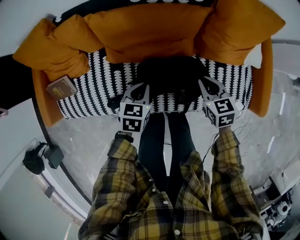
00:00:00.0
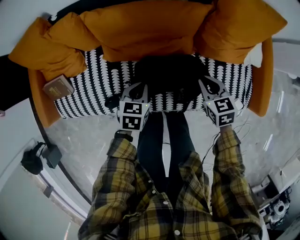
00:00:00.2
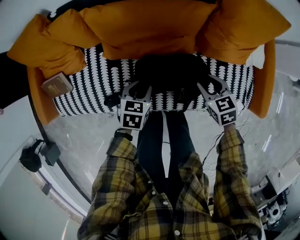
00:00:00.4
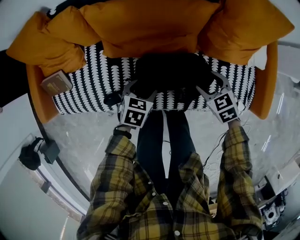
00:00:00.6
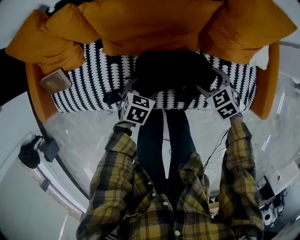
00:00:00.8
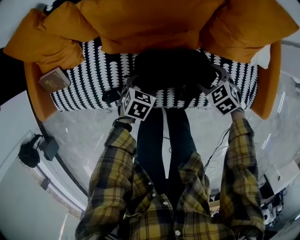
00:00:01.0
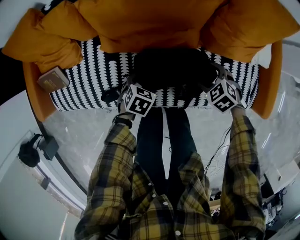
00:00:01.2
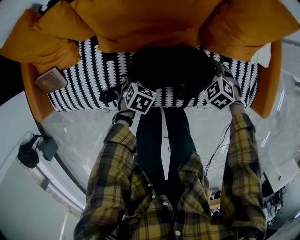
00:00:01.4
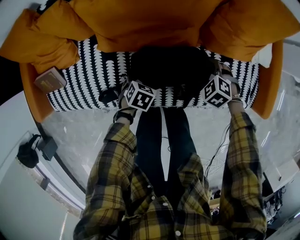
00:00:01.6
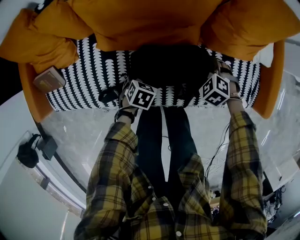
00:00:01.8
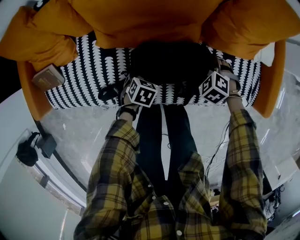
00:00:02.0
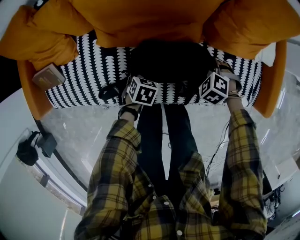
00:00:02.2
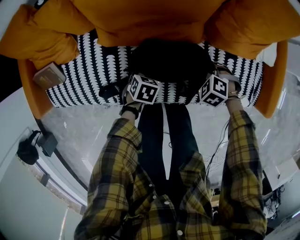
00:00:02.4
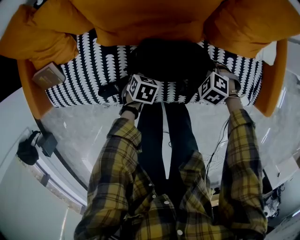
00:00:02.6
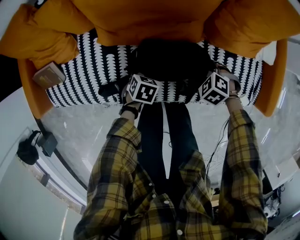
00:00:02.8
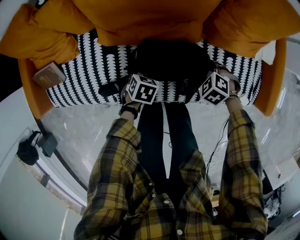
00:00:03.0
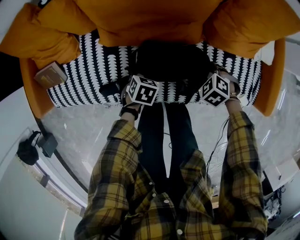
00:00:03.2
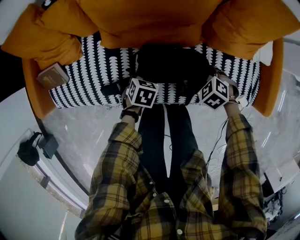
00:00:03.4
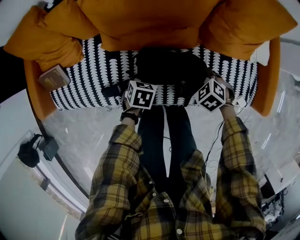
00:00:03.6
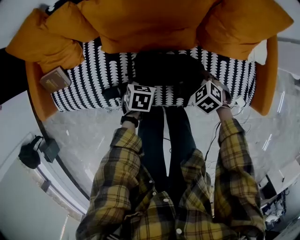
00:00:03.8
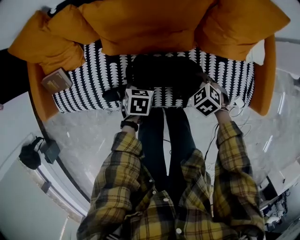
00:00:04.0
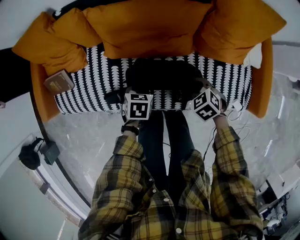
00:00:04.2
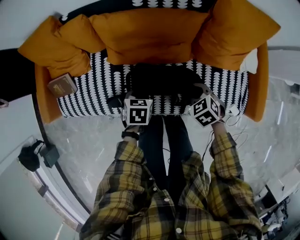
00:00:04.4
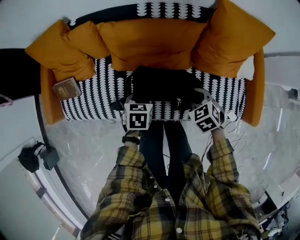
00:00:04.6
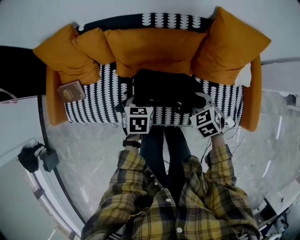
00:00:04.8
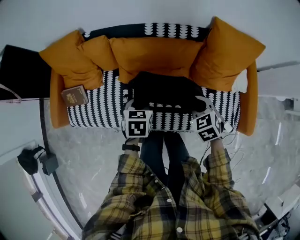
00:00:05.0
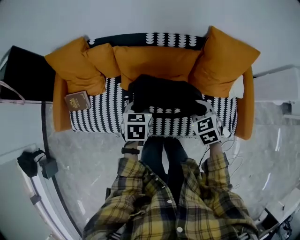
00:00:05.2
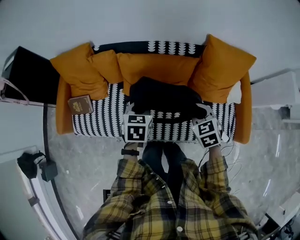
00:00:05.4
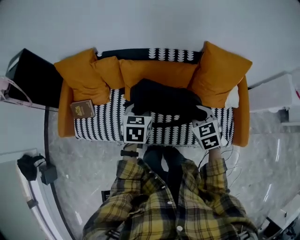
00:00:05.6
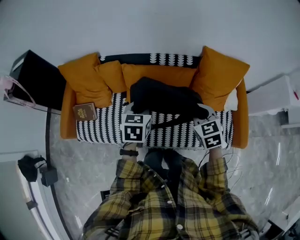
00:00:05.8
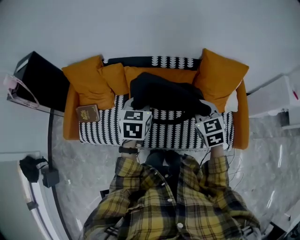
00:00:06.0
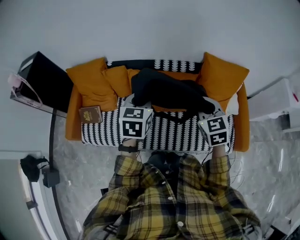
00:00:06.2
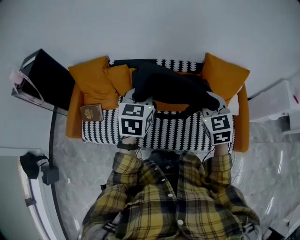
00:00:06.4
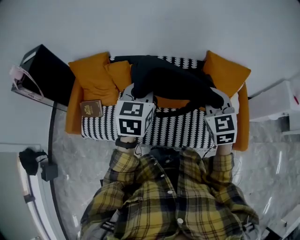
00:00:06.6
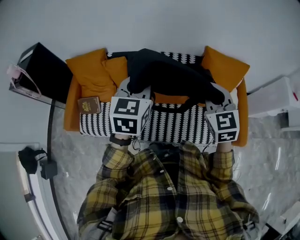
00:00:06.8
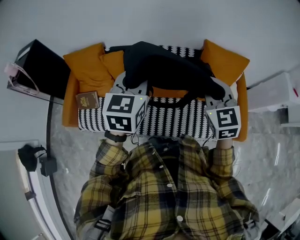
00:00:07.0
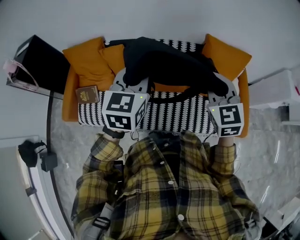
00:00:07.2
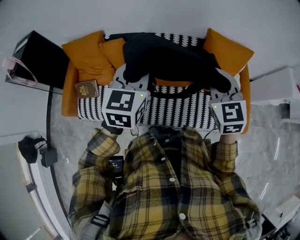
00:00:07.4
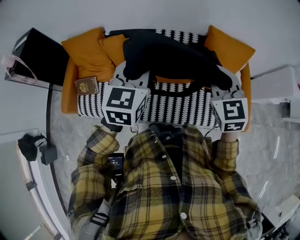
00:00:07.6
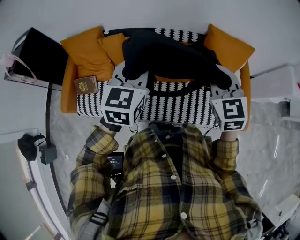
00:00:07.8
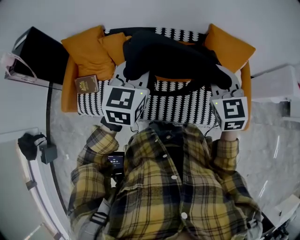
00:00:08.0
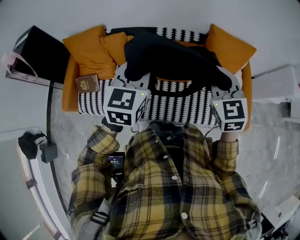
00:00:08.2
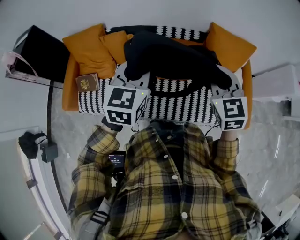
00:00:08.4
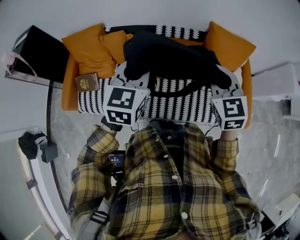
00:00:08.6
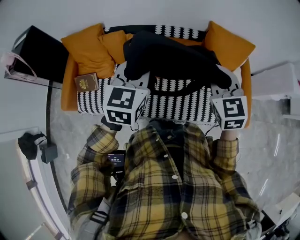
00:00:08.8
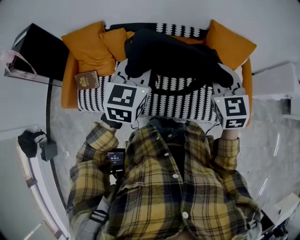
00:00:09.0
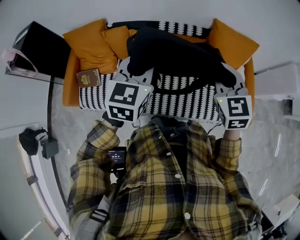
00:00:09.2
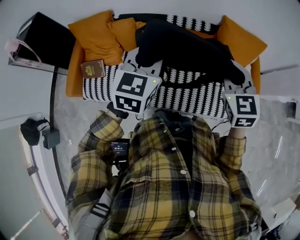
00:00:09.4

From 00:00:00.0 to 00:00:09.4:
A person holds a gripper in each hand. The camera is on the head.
From 00:00:00.0 to 00:00:01.6: Both grippers travel together downward, approximately 15 cm. The left gripper rotates approximately 20 degrees, and opens. Meanwhile the right gripper twists about 40 degrees counterclockwise, seen from behind, and opens its fingers.
From 00:00:01.6 to 00:00:03.2: The right gripper closes up. Meanwhile the left gripper closes its fingers.
From 00:00:03.2 to 00:00:04.8: Both grippers move upward, some 20 cm. The left gripper turns by some 20 degrees. Meanwhile the right gripper turns by about 30 degrees.
From 00:00:04.8 to 00:00:06.2: The grippers both shift upward by approximately 30 cm. The left gripper swivels approximately 30 degrees. Meanwhile the right gripper changes its angle by some 30 degrees.
From 00:00:06.2 to 00:00:07.8: Both grippers move upward, approximately 5 cm.
From 00:00:07.8 to 00:00:09.4: The grippers stay close to where they were, moving slightly.

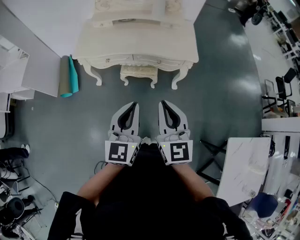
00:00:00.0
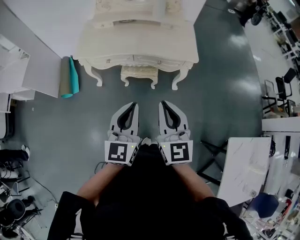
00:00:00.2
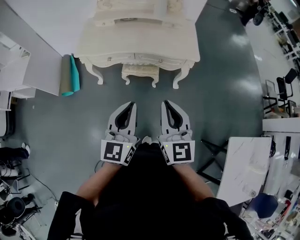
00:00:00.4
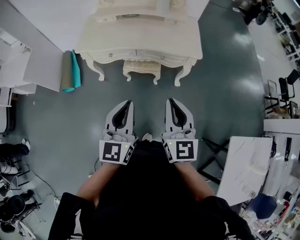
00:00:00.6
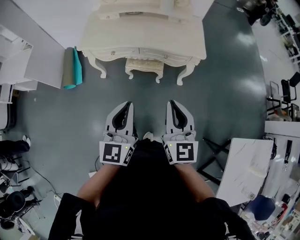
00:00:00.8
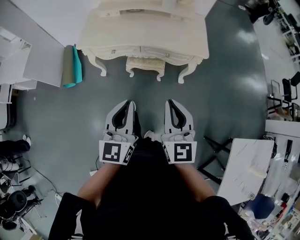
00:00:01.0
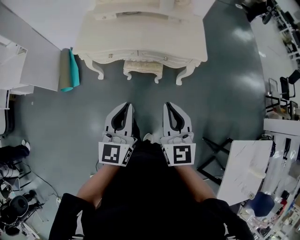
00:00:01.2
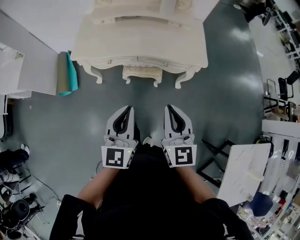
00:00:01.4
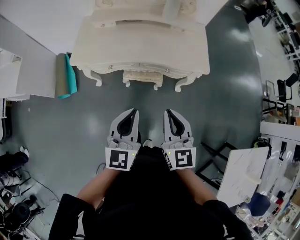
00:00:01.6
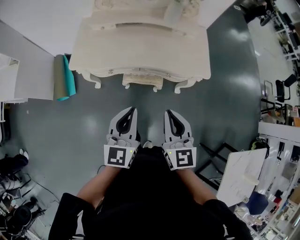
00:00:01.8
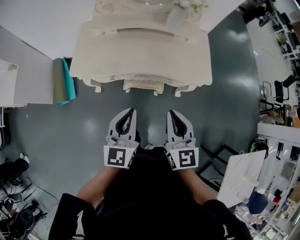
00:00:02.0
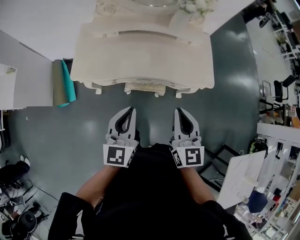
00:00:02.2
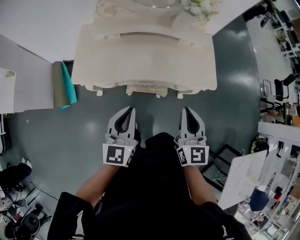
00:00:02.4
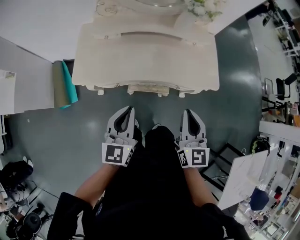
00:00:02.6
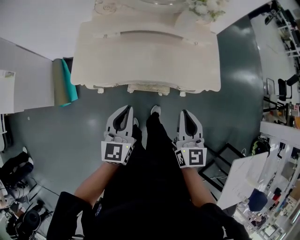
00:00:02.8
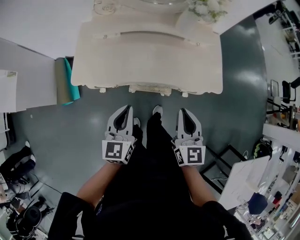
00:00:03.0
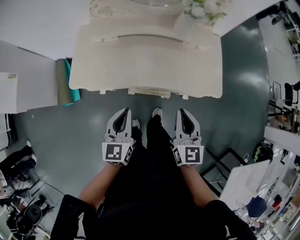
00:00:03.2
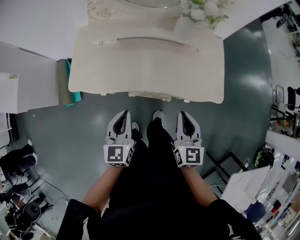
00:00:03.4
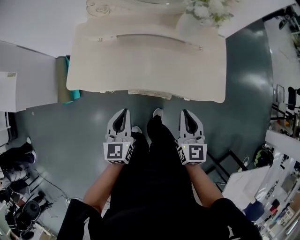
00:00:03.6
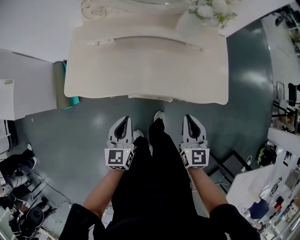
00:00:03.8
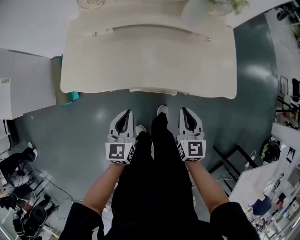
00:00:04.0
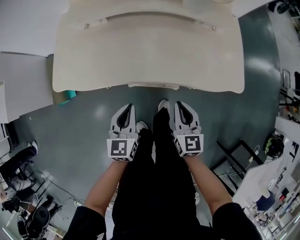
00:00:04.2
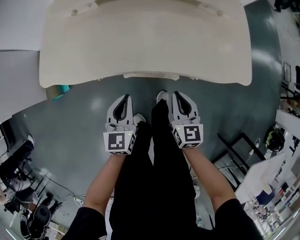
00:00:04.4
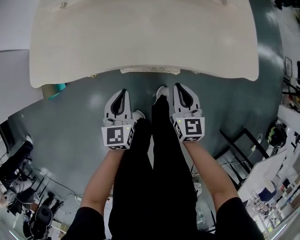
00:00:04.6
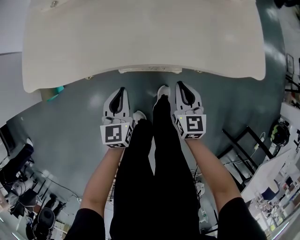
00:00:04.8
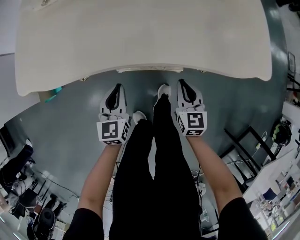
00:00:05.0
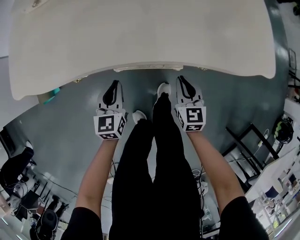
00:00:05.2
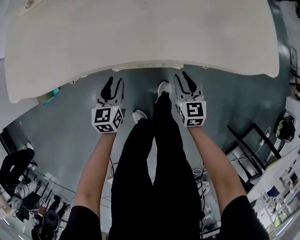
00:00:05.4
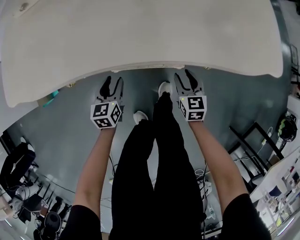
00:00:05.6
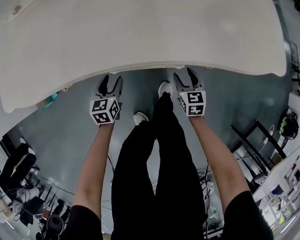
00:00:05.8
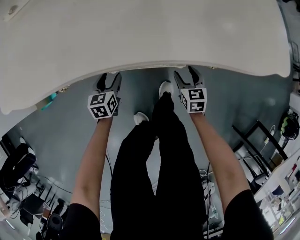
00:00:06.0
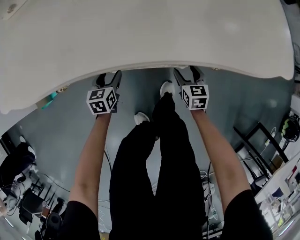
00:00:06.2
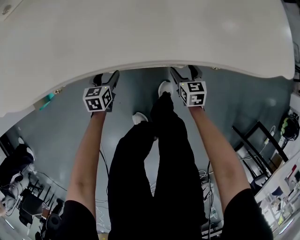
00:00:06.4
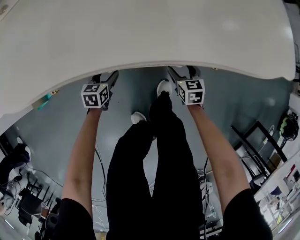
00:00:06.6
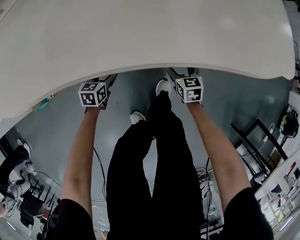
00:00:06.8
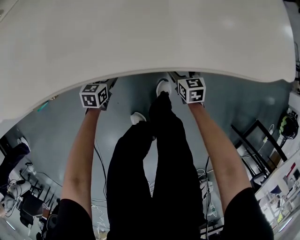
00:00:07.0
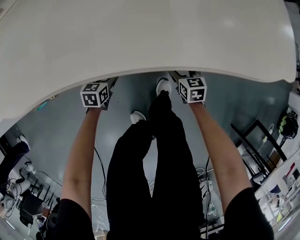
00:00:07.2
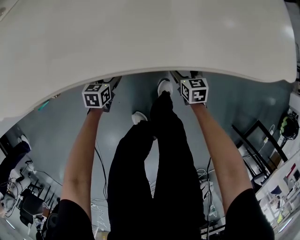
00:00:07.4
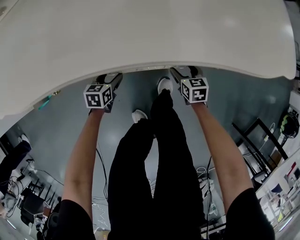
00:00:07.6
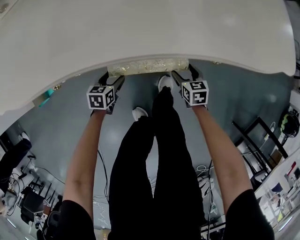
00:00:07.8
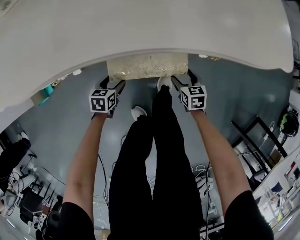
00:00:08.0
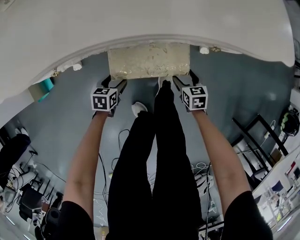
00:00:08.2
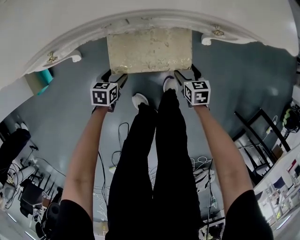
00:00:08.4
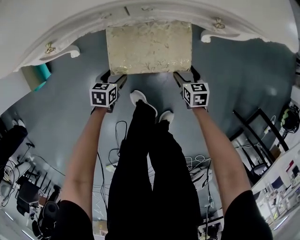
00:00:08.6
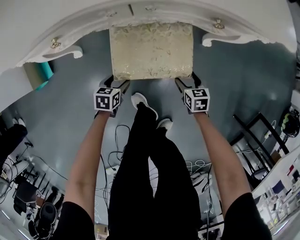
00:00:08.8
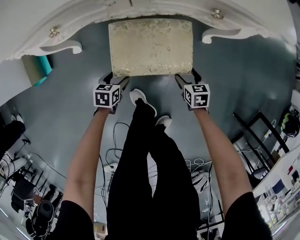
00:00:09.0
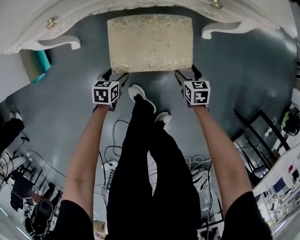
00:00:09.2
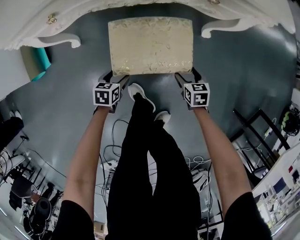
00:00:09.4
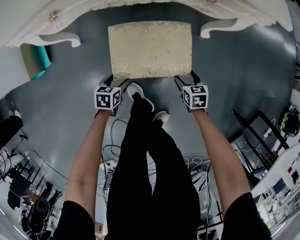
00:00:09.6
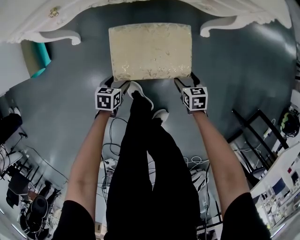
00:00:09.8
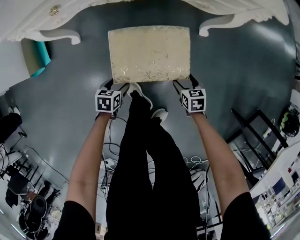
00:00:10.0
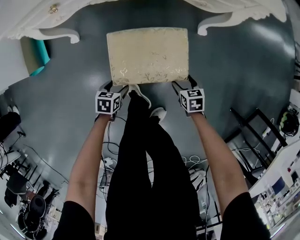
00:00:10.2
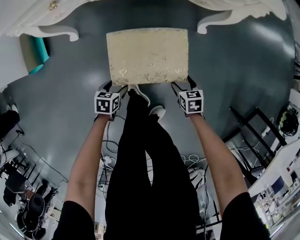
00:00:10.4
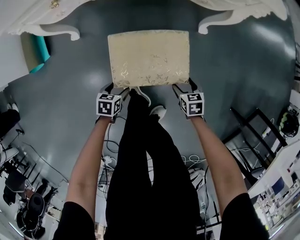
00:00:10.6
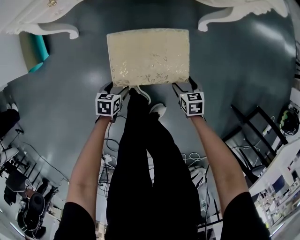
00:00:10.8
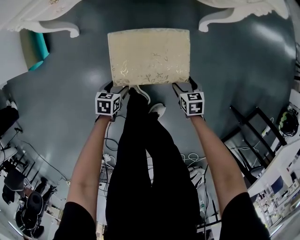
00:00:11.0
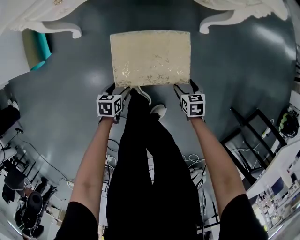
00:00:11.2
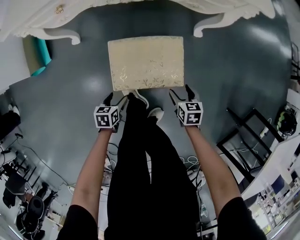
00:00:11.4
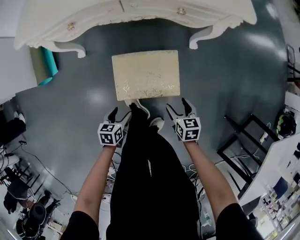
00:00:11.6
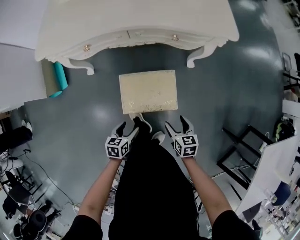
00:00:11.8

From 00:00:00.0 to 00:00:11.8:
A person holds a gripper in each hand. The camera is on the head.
From 00:00:00.0 to 00:00:01.4: The left gripper heads forward and to the left, covering approximately 10 cm. The right gripper is displaced forward by about 10 cm.
From 00:00:01.4 to 00:00:03.0: The left gripper moves forward and to the left, about 25 cm. Meanwhile the right gripper shifts about 20 cm forward.
From 00:00:03.0 to 00:00:04.4: The grippers both shift downward by approximately 25 cm.
From 00:00:04.4 to 00:00:06.0: Both grippers travel together downward, about 35 cm. The left gripper changes its angle by about 20 degrees, and opens up, while the right gripper opens its fingers.
From 00:00:06.0 to 00:00:07.4: The left gripper ends up approximately 5 cm from where it was.
From 00:00:07.4 to 00:00:08.8: Both grippers move backward, roughly 15 cm.
From 00:00:08.8 to 00:00:10.4: The two grippers go approximately 15 cm backward.
From 00:00:10.4 to 00:00:11.8: The grippers both shift upward by about 20 cm.

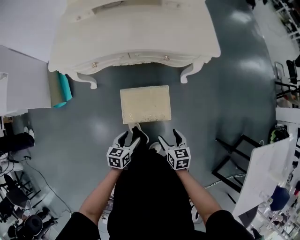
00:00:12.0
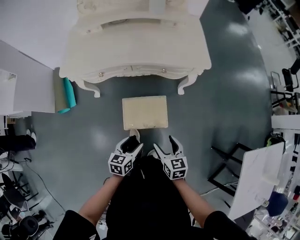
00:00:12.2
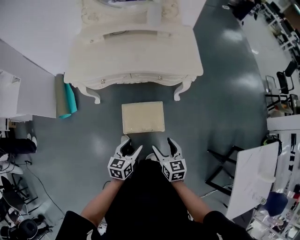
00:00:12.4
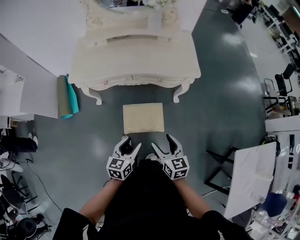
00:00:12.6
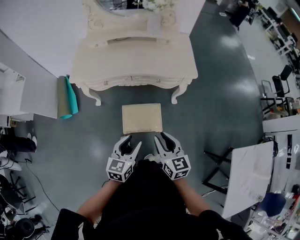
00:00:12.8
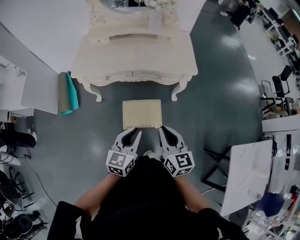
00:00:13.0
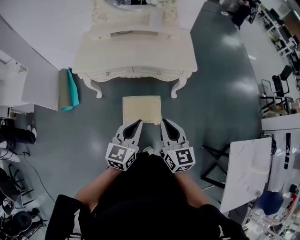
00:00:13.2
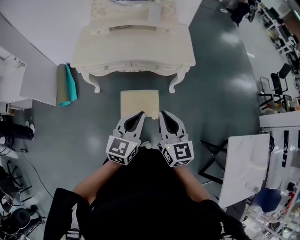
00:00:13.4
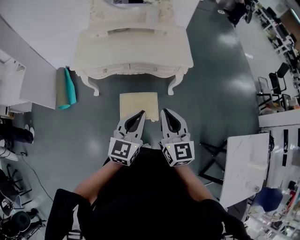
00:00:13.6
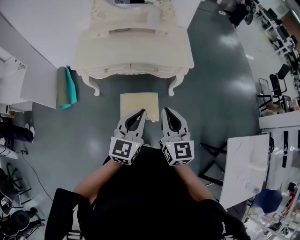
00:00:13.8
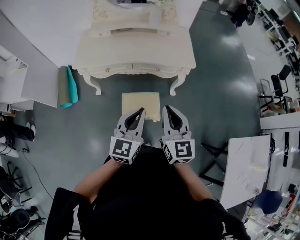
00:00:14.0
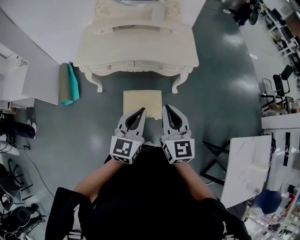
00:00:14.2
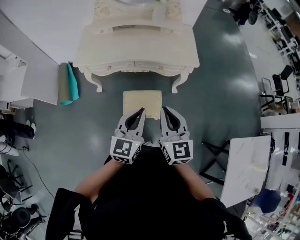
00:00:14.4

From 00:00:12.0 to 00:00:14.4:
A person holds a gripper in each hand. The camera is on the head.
From 00:00:12.0 to 00:00:13.2: The grippers both shift upward by about 40 cm. The left gripper turns by about 30 degrees, and closes up. Meanwhile the right gripper tips its fingers upward by roughly 30 degrees, and closes its fingers.
From 00:00:13.2 to 00:00:14.4: The grippers move only a little.
